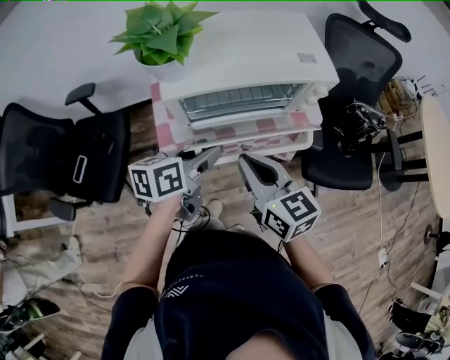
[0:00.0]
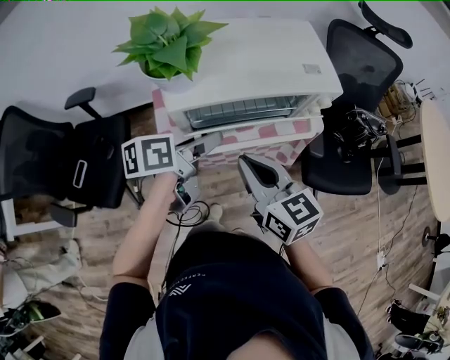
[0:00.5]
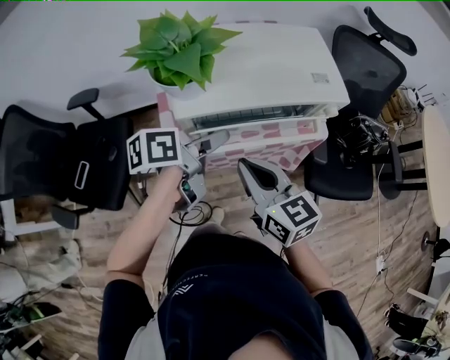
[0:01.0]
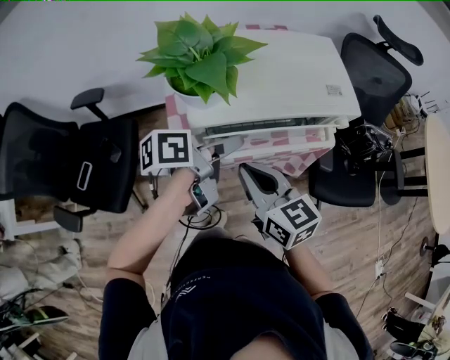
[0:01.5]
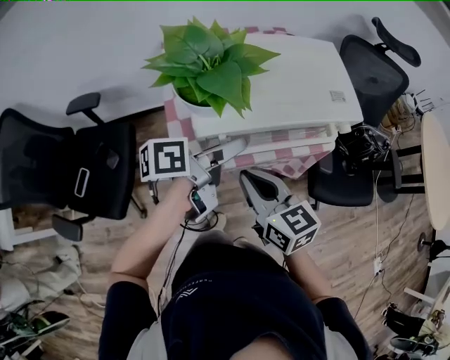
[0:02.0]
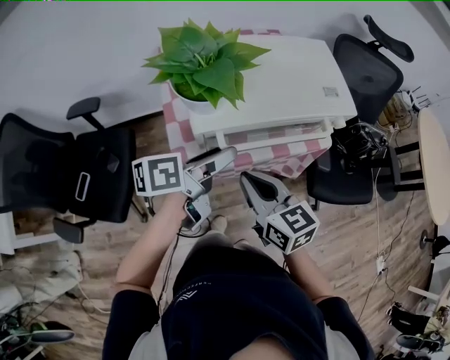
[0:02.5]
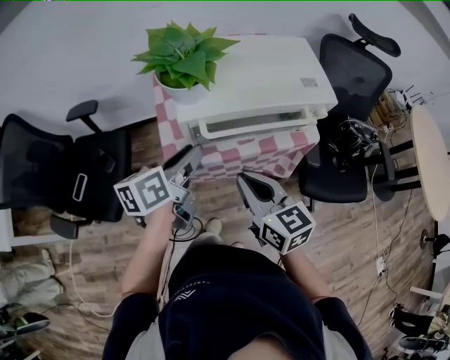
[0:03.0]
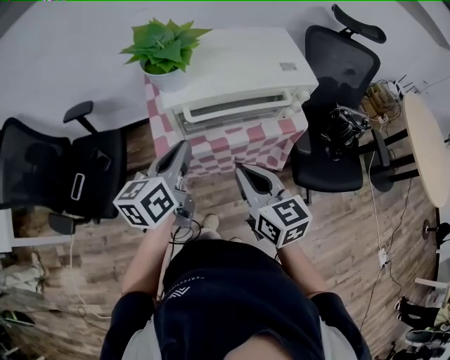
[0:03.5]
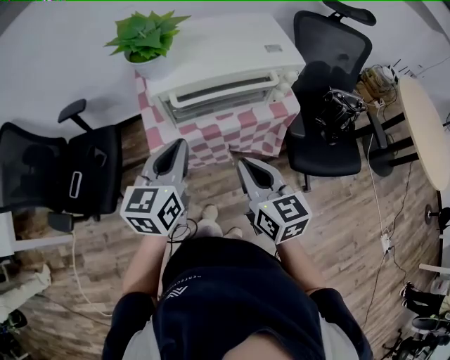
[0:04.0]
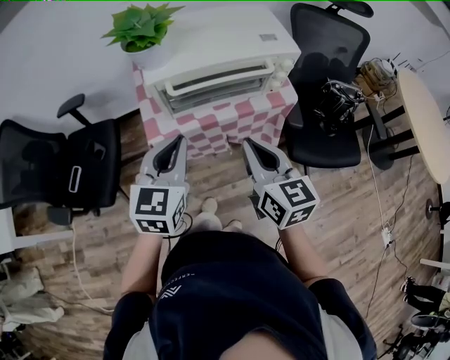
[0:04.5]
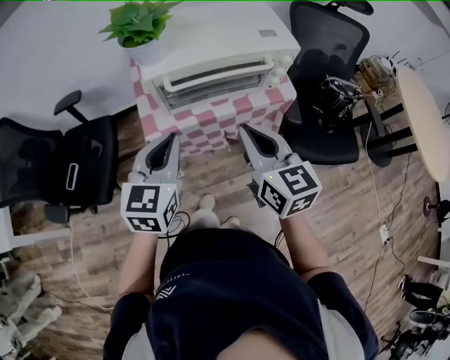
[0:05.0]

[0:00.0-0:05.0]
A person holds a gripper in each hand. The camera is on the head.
0:00.0 to 0:02.5: The left gripper ends up some 10 cm from where it was. Meanwhile the right gripper travels to the left by approximately 5 cm.
0:02.5 to 0:05.0: The right gripper goes roughly 15 cm to the right, backward and upward; the left gripper is displaced backward by some 15 cm, twists roughly 60 degrees clockwise, seen from behind, and closes up.

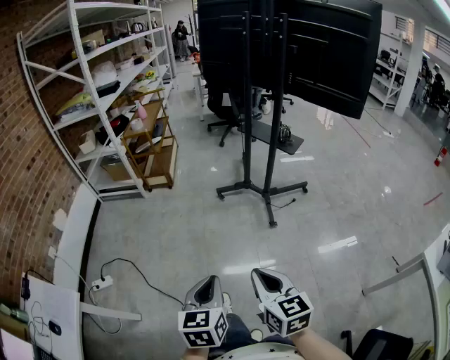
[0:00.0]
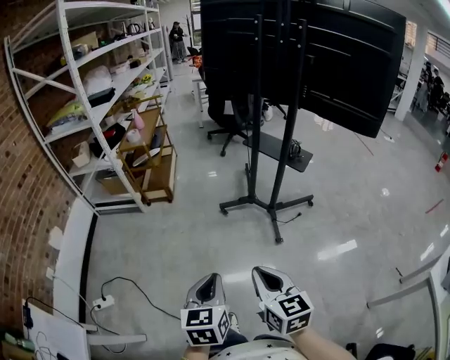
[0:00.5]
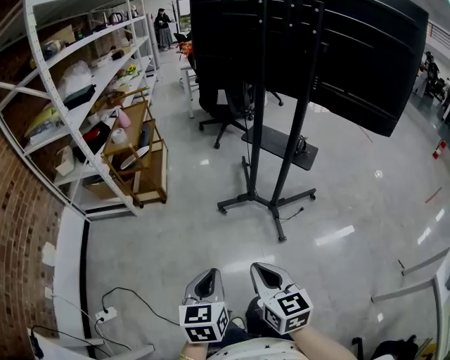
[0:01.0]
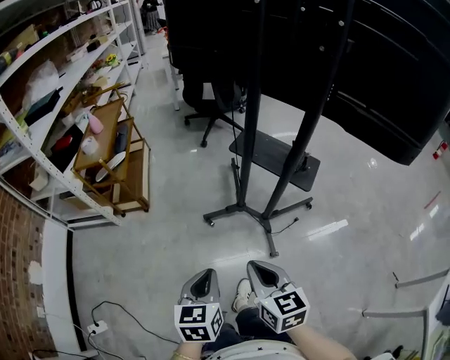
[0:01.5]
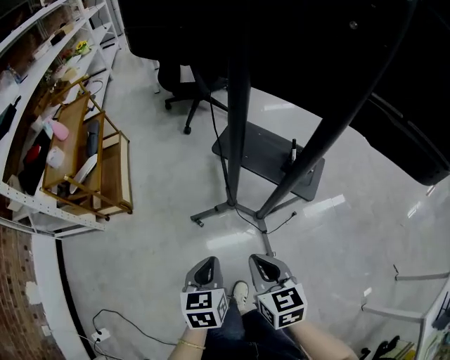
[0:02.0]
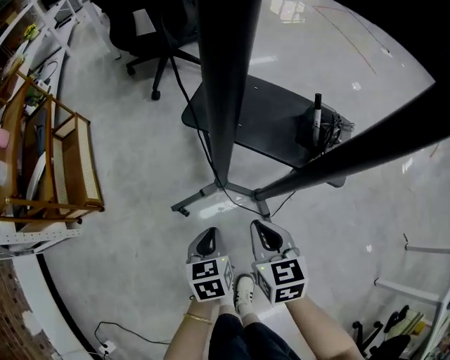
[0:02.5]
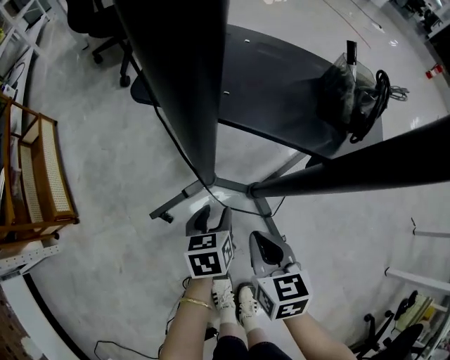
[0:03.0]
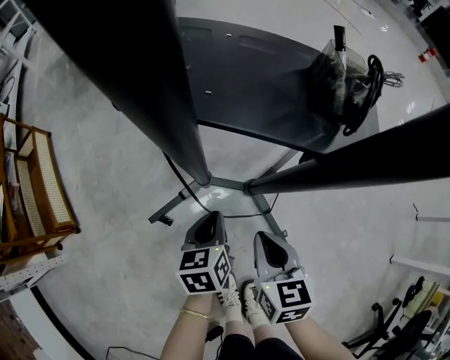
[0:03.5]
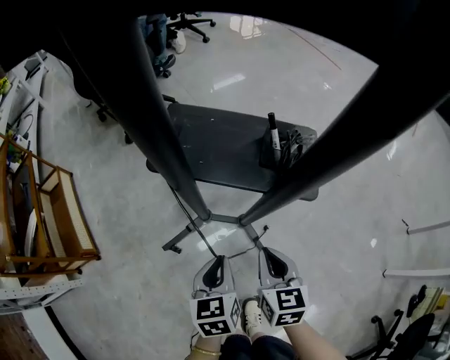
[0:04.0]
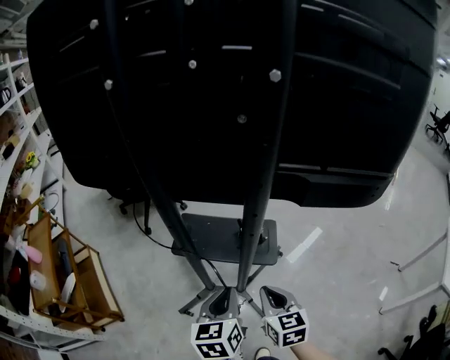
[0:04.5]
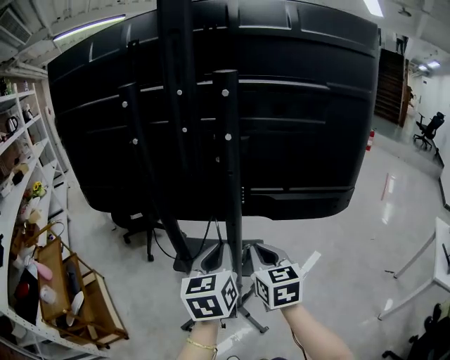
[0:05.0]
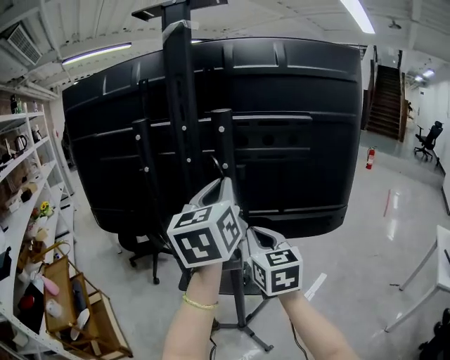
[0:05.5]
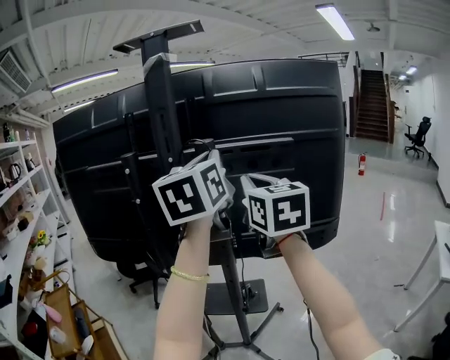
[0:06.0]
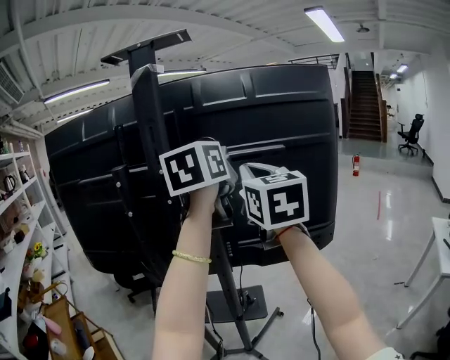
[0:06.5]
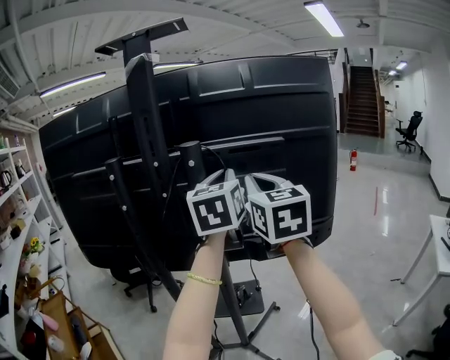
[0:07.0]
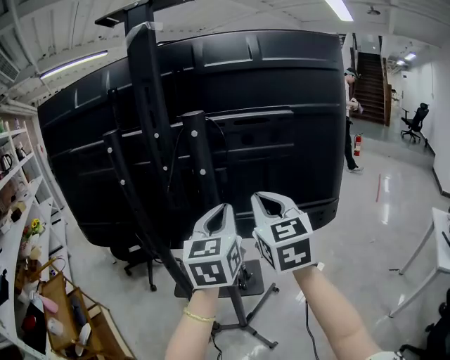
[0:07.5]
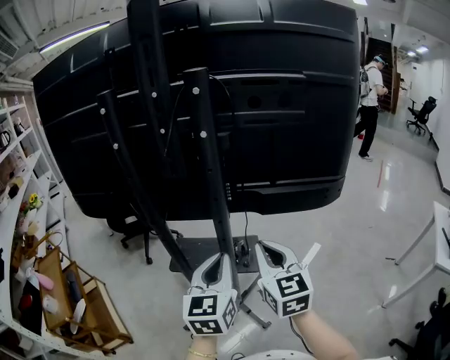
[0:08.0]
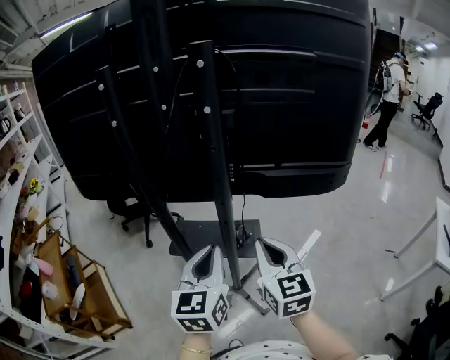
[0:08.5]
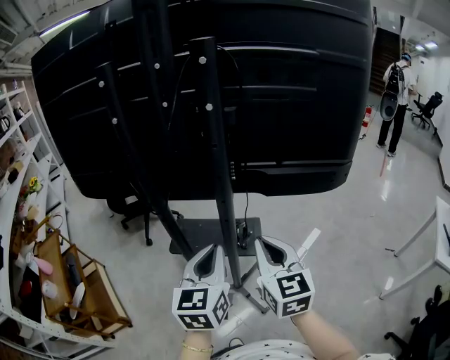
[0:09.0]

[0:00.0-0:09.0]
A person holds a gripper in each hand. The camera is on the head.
0:00.0 to 0:02.0: The two grippers travel together, forward, about 70 cm.
0:02.0 to 0:04.5: The right gripper moves some 35 cm downward and comes back, and turns by approximately 30 degrees. The left gripper travels downward and back again, roughly 40 cm each way, swivels roughly 30 degrees, and opens and closes again.
0:04.5 to 0:07.0: The two grippers go approximately 50 cm upward. The right gripper angles its fingers upward, by roughly 30 degrees; the left gripper swivels about 40 degrees.
0:07.0 to 0:09.0: The right gripper travels downward by roughly 30 cm, while the left gripper shifts some 35 cm downward and backward.

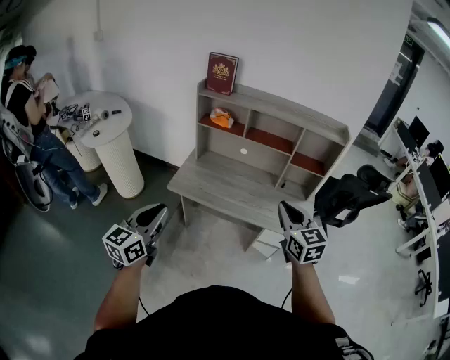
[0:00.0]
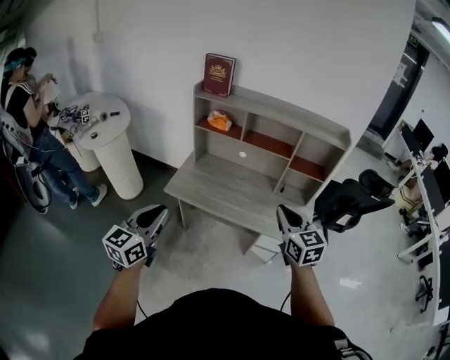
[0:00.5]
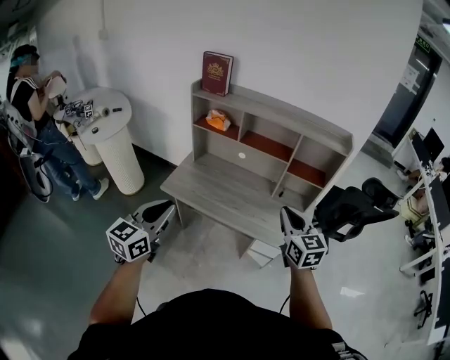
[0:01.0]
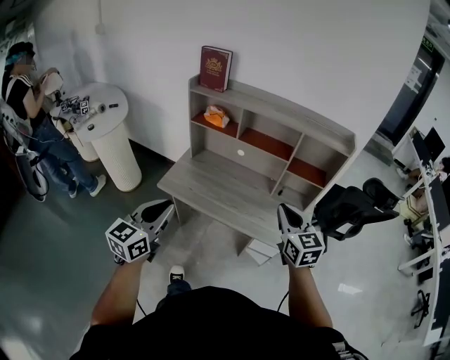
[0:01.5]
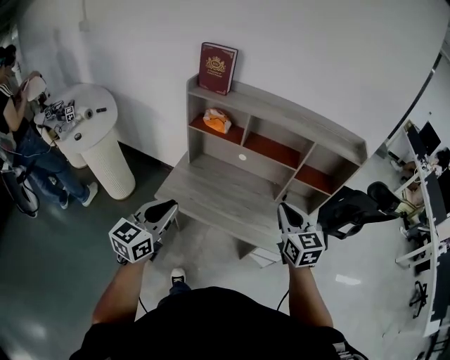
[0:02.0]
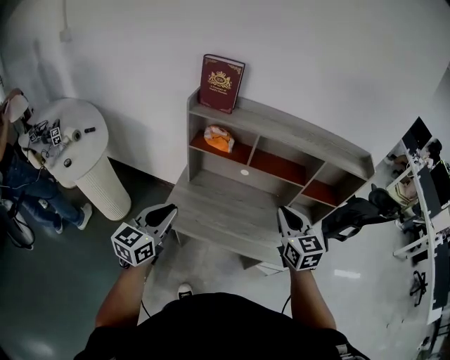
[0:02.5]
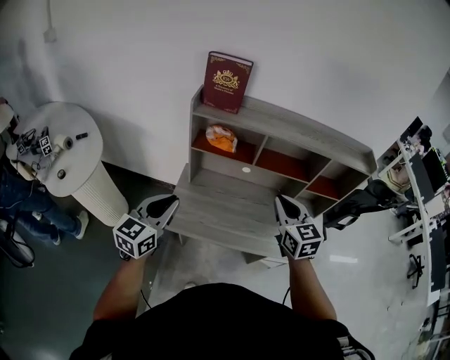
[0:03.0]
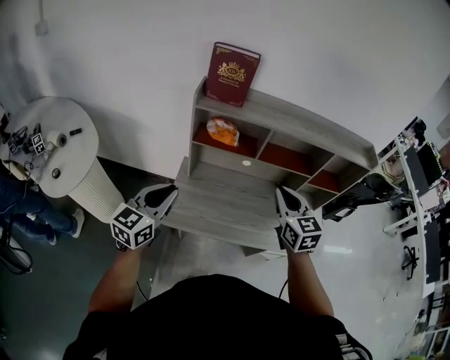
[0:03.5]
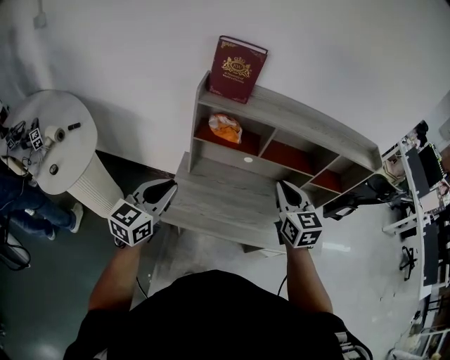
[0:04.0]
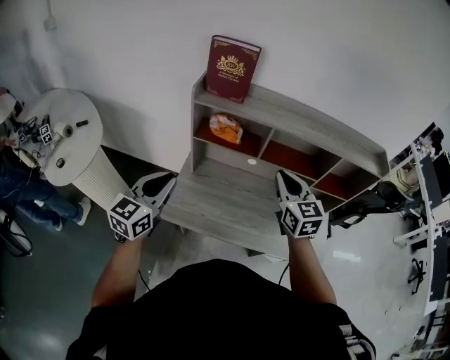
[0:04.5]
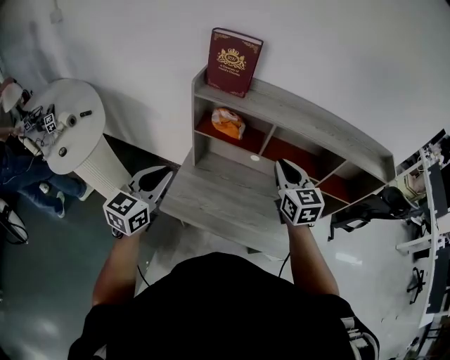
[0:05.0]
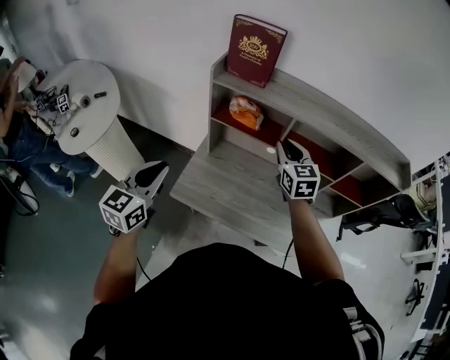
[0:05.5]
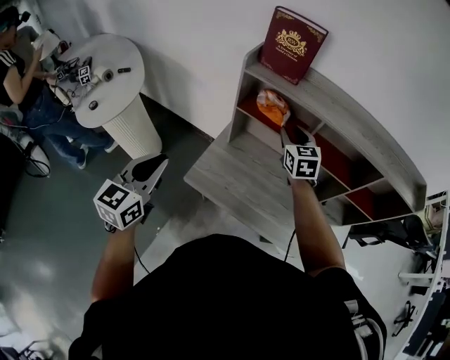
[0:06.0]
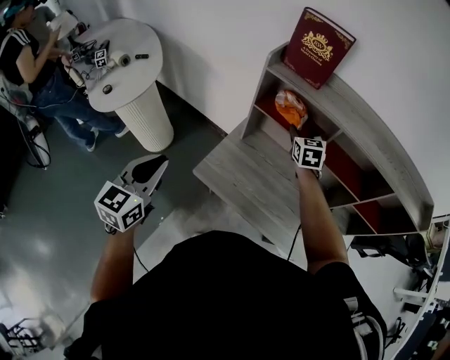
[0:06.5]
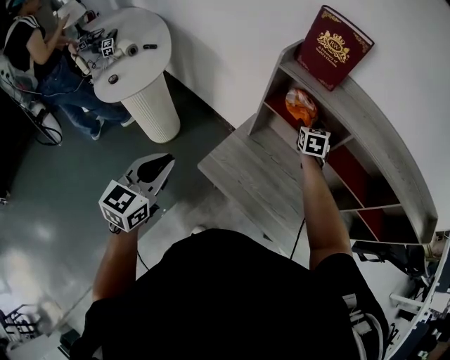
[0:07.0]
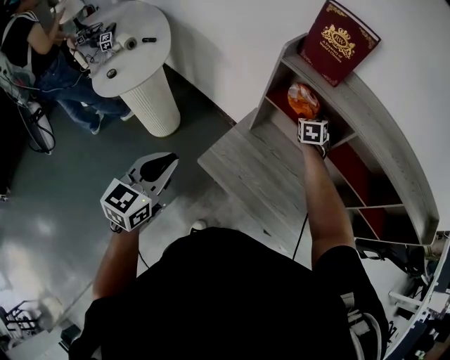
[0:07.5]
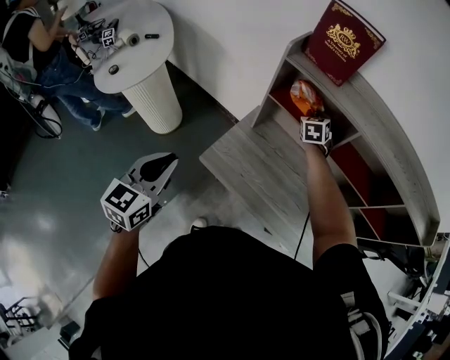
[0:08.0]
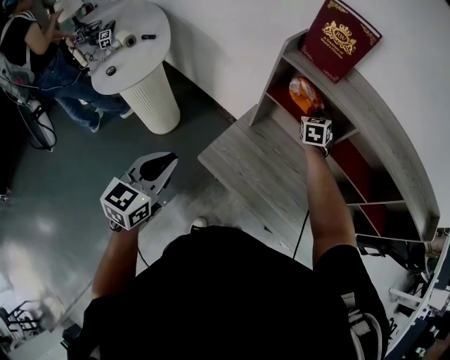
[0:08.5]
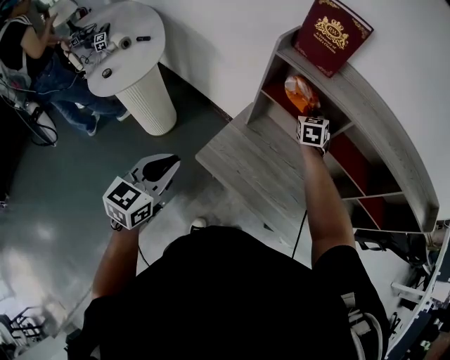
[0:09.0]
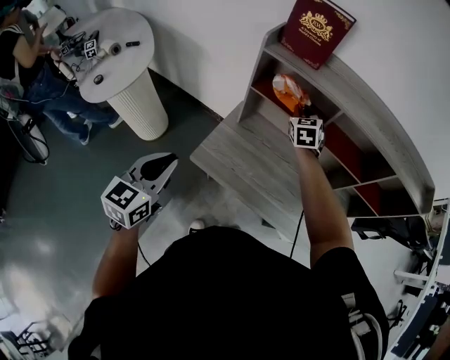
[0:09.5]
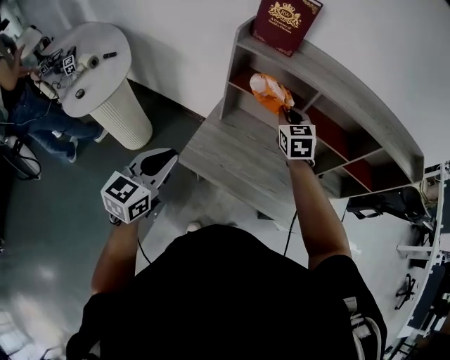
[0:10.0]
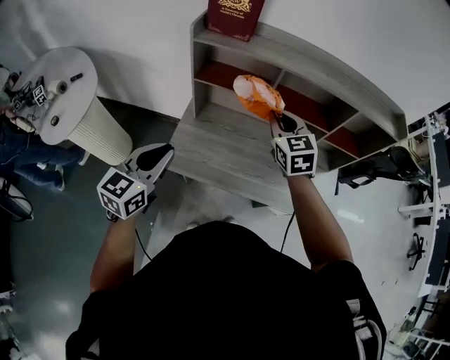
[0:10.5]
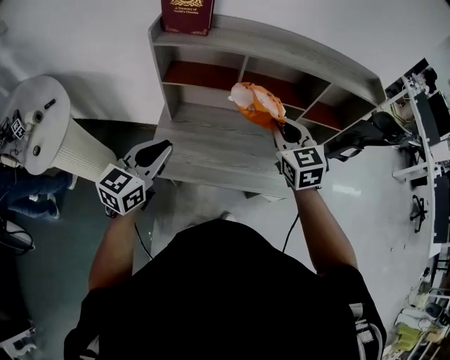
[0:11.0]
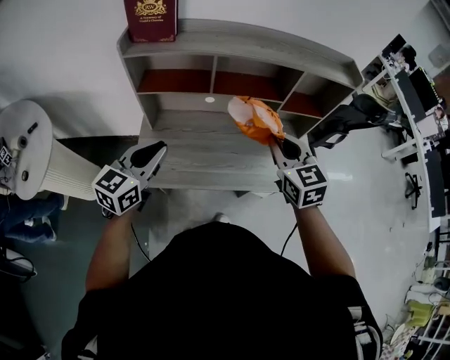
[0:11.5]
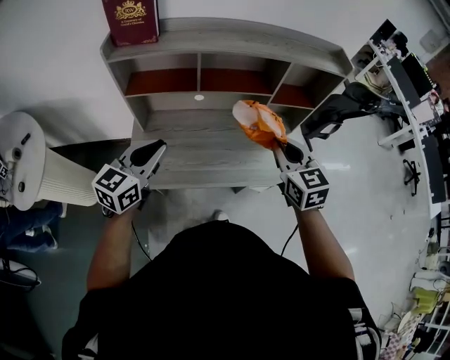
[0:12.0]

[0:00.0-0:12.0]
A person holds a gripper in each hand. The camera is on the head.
0:00.0 to 0:02.0: Both grippers move forward, approximately 20 cm.
0:02.0 to 0:04.0: Both grippers travel together to the left and forward, about 25 cm.
0:04.0 to 0:06.0: The right gripper travels forward and downward by about 20 cm, and opens its fingers; the left gripper shifts roughly 5 cm backward, and turns by roughly 20 degrees.
0:06.0 to 0:08.0: The right gripper heads forward and downward, covering roughly 15 cm, swivels approximately 20 degrees, and opens and closes again; the left gripper shifts by approximately 5 cm.
0:08.0 to 0:10.0: The left gripper moves to the right, about 5 cm. Meanwhile the right gripper goes about 20 cm backward and upward.
0:10.0 to 0:12.0: The left gripper moves to the right and forward, roughly 20 cm, and turns by about 30 degrees; the right gripper travels to the right and backward by about 35 cm, and swivels approximately 20 degrees.
